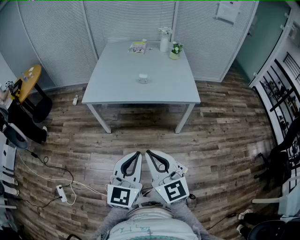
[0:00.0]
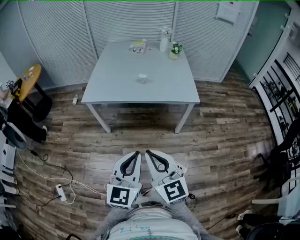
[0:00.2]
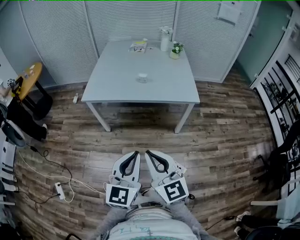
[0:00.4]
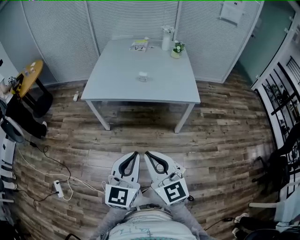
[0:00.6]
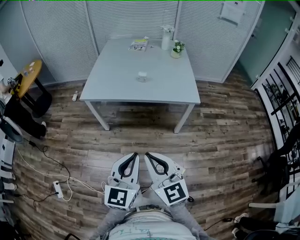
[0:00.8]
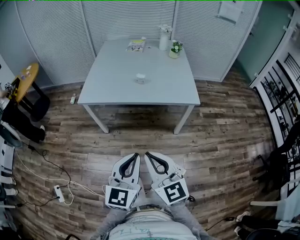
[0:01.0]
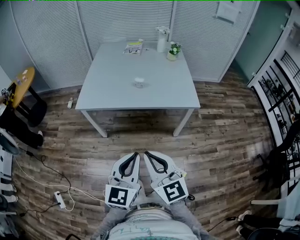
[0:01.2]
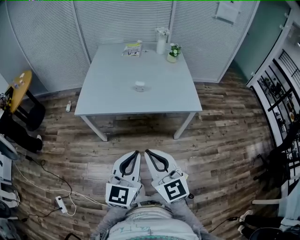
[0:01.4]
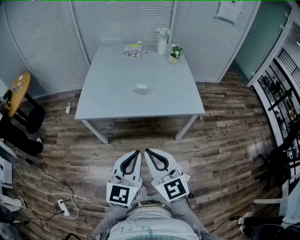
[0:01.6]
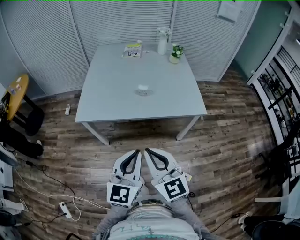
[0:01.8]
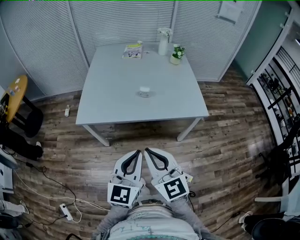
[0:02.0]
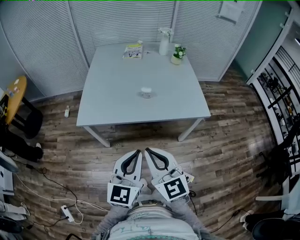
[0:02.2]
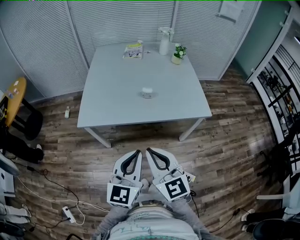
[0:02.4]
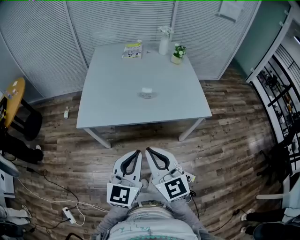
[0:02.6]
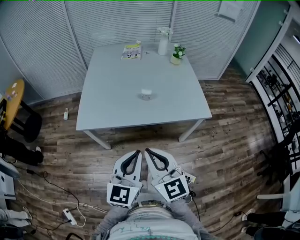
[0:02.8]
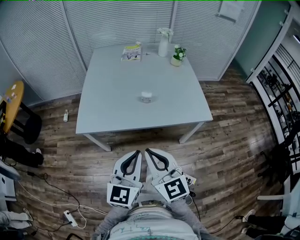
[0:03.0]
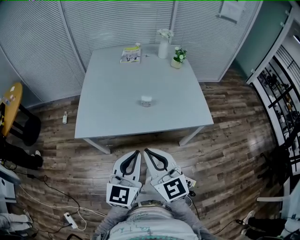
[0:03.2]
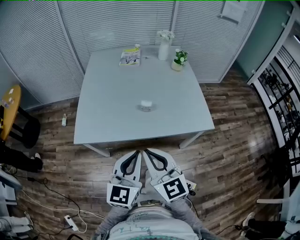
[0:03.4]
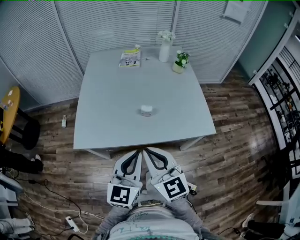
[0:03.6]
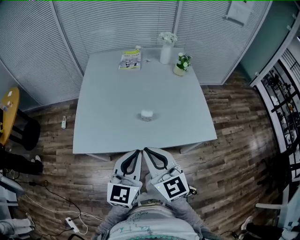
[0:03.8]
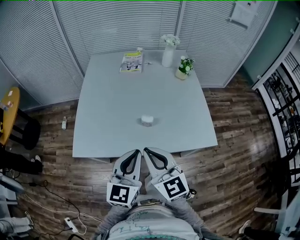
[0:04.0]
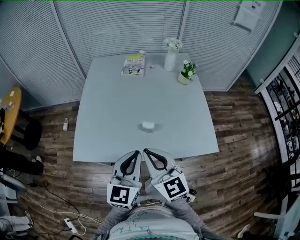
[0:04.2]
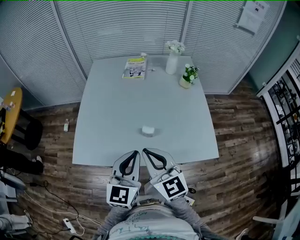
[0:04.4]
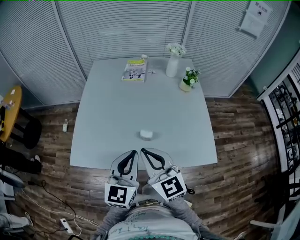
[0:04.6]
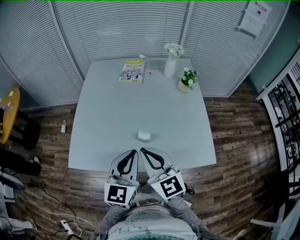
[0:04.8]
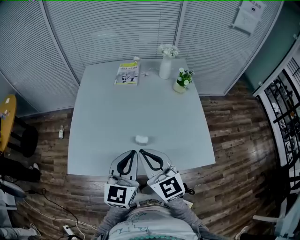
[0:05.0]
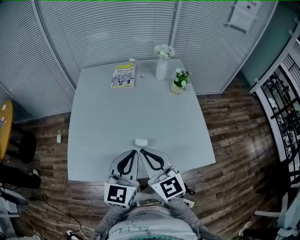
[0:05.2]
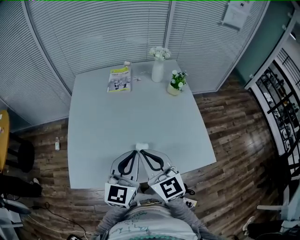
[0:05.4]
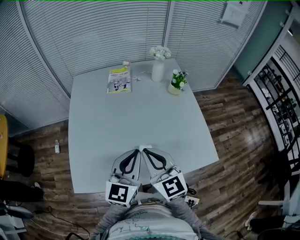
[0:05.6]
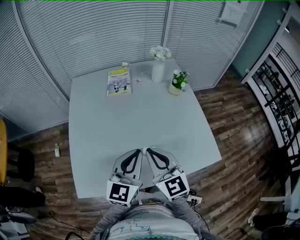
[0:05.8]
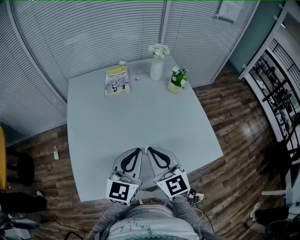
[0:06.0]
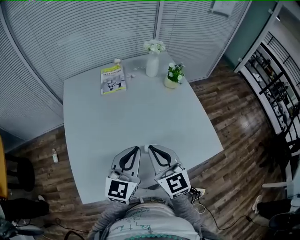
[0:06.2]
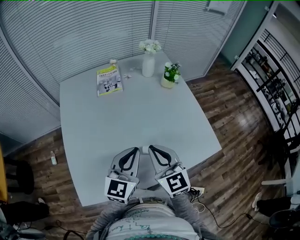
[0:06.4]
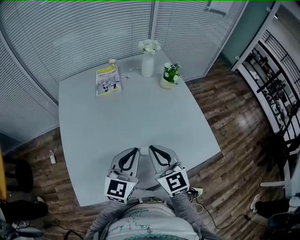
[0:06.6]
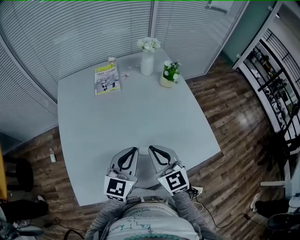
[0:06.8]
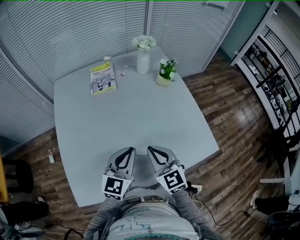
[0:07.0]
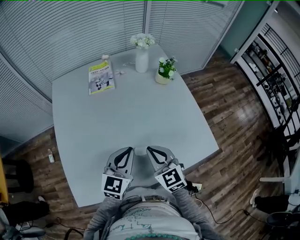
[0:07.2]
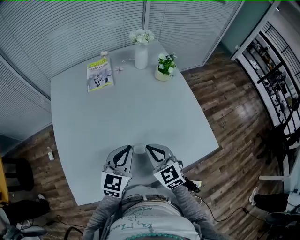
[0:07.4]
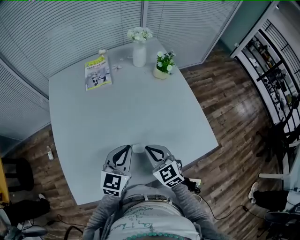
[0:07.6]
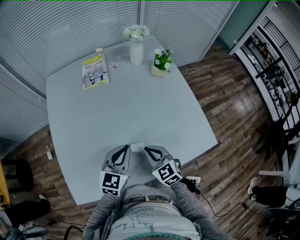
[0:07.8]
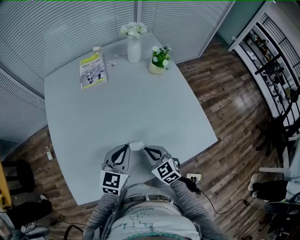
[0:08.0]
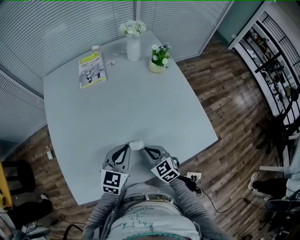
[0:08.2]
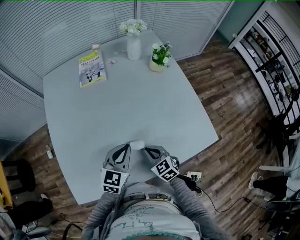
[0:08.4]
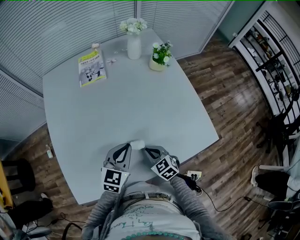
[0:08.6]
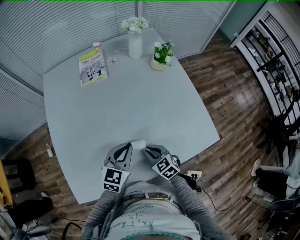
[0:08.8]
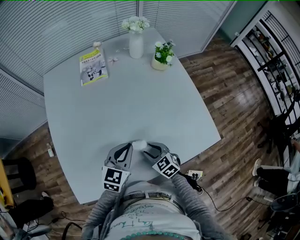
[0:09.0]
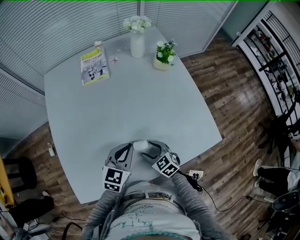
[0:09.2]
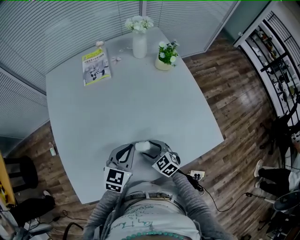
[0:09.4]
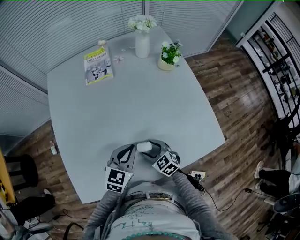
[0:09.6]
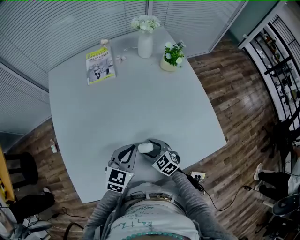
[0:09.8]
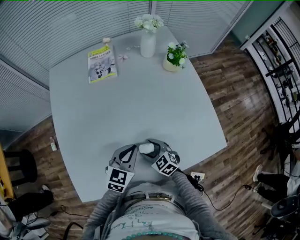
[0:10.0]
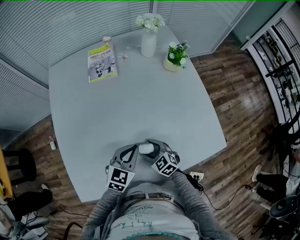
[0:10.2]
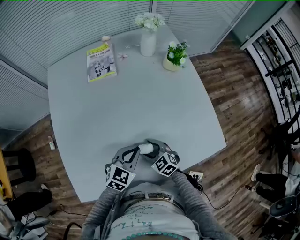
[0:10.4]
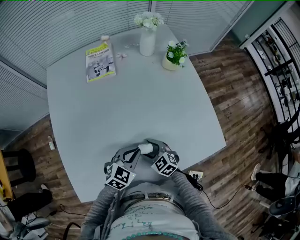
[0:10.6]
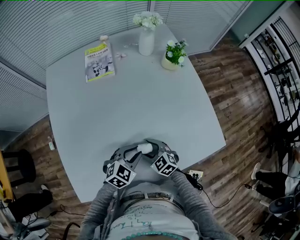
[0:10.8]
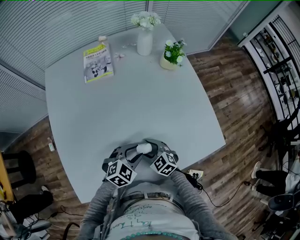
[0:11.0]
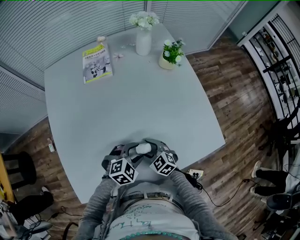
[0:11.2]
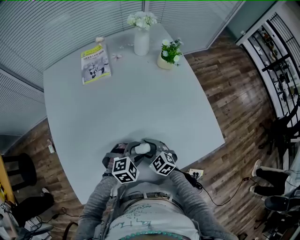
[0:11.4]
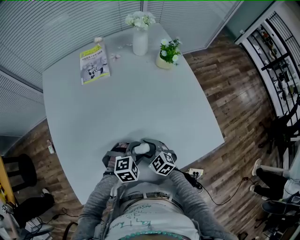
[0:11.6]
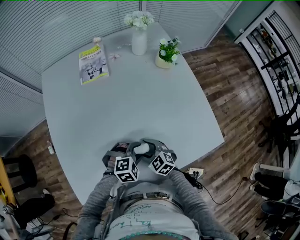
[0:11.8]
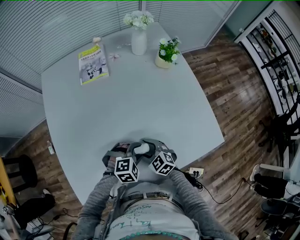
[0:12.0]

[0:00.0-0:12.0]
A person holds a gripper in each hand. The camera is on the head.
0:00.0 to 0:01.6: Both grippers move forward, roughly 20 cm.
0:01.6 to 0:03.0: The two grippers go roughly 15 cm forward and to the left.
0:03.0 to 0:04.4: The two grippers go about 25 cm forward.
0:04.4 to 0:06.0: Both grippers move forward, some 15 cm.
0:06.0 to 0:07.6: The left gripper moves downward, some 10 cm. The right gripper shifts roughly 15 cm downward and to the right, and rotates some 20 degrees.
0:07.6 to 0:09.0: The left gripper is displaced downward by approximately 5 cm. The right gripper travels downward by roughly 15 cm, and opens its fingers.
0:09.0 to 0:10.4: The right gripper moves some 5 cm, and opens up.
0:10.4 to 0:12.0: The left gripper travels downward by some 5 cm, turns by about 50 degrees, and opens its fingers.

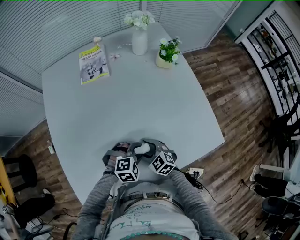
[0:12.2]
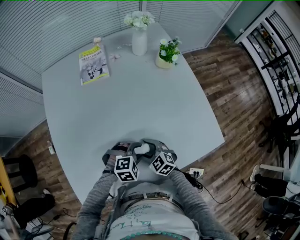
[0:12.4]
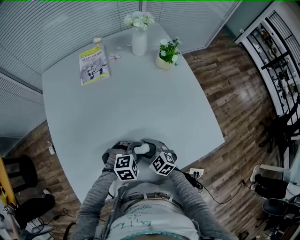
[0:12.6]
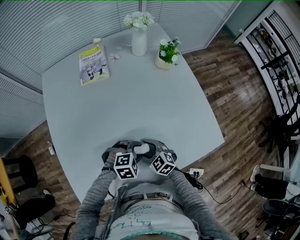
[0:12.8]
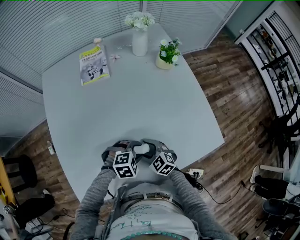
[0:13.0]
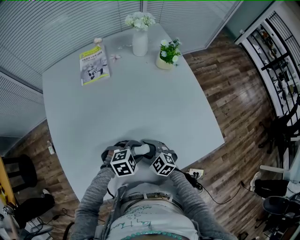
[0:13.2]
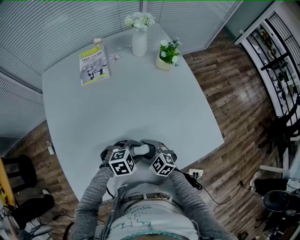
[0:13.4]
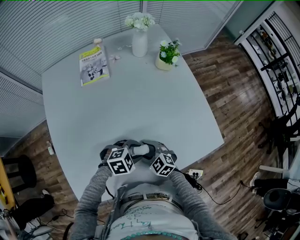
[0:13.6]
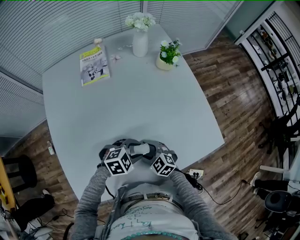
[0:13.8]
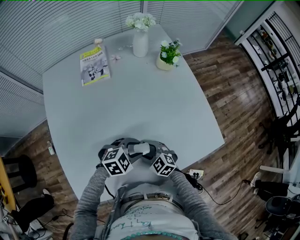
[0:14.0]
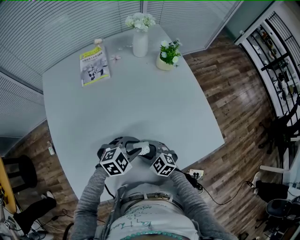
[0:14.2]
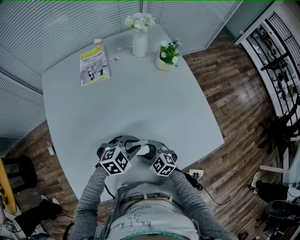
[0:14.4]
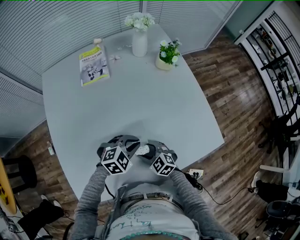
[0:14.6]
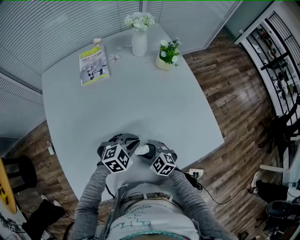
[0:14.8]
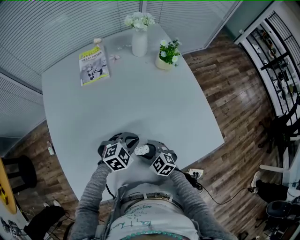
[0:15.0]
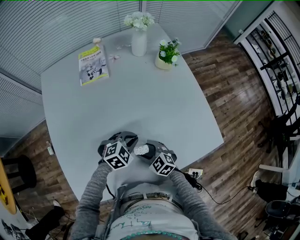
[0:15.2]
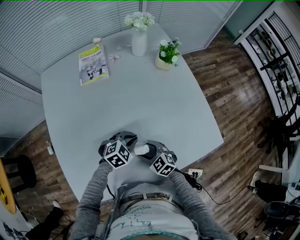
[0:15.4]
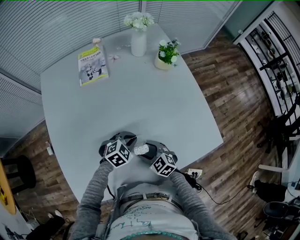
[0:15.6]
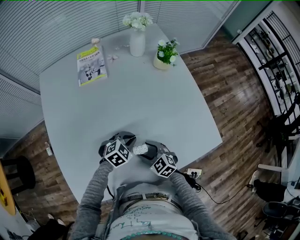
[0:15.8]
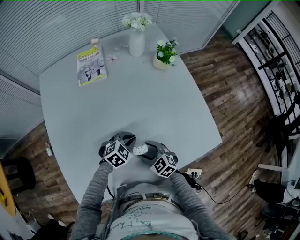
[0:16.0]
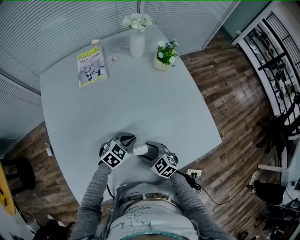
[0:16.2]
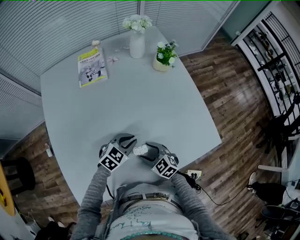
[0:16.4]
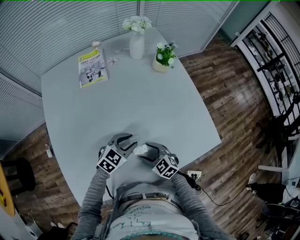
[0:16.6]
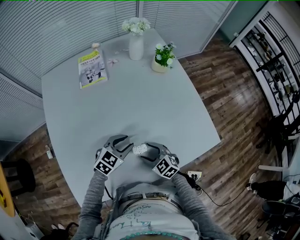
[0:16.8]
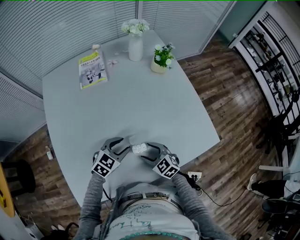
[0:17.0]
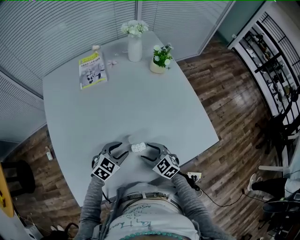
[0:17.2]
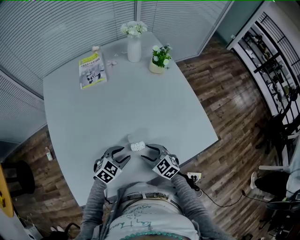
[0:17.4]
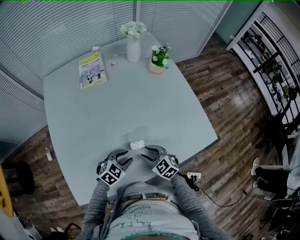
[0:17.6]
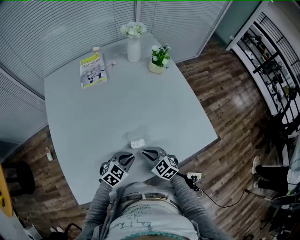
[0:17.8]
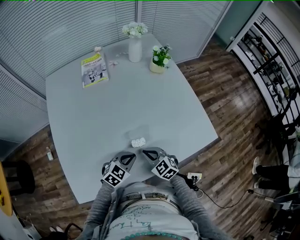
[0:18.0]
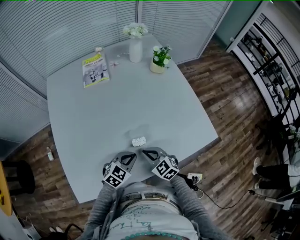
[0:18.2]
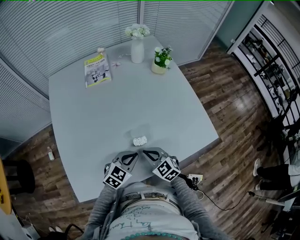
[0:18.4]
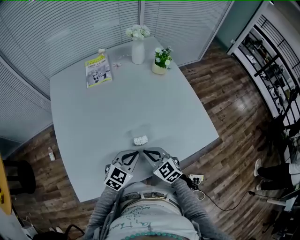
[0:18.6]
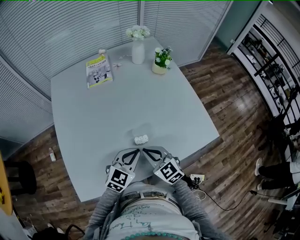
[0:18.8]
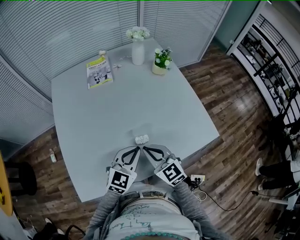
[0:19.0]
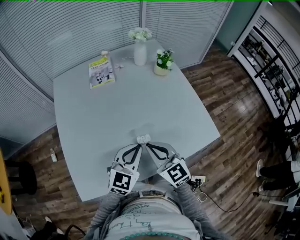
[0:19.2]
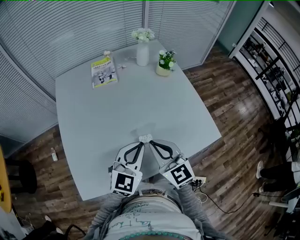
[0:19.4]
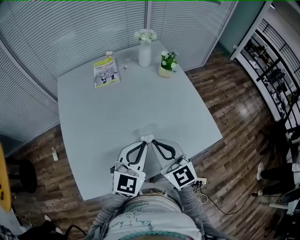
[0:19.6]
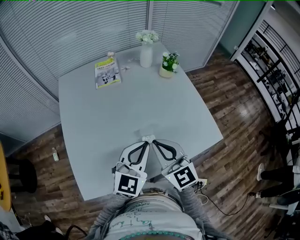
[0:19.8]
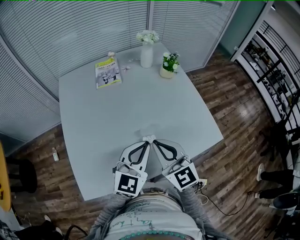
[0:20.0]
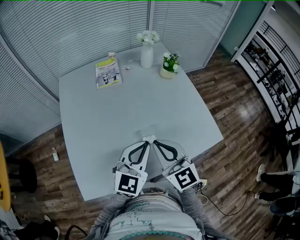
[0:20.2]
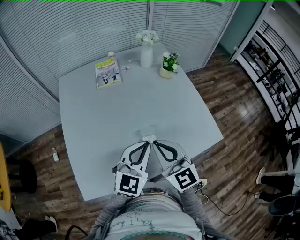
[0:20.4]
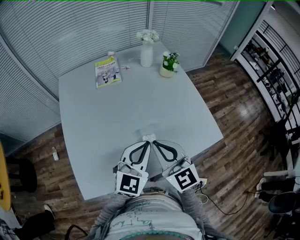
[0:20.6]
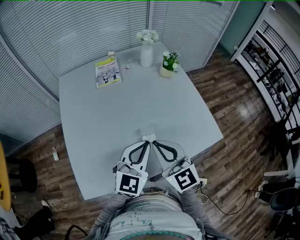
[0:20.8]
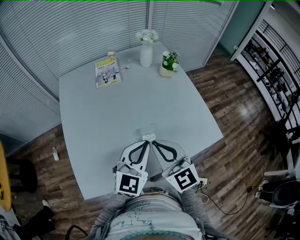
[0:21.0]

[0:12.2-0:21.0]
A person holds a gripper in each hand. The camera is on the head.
0:12.2 to 0:13.6: There are only small adjustments of the grippers.
0:13.6 to 0:15.2: The left gripper changes place by about 5 cm, and closes its fingers.
0:15.2 to 0:16.6: The left gripper swivels roughly 20 degrees, and opens up.
0:16.6 to 0:18.0: The right gripper moves some 5 cm, and closes. Meanwhile the left gripper travels backward by some 15 cm, and closes its fingers.
0:18.0 to 0:19.6: The grippers both shift upward by about 25 cm. The left gripper swivels about 40 degrees; the right gripper rotates approximately 30 degrees.
0:19.6 to 0:21.0: The grippers move only a little.

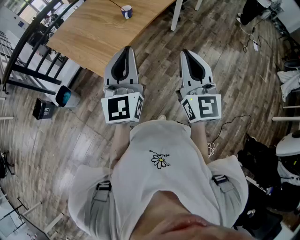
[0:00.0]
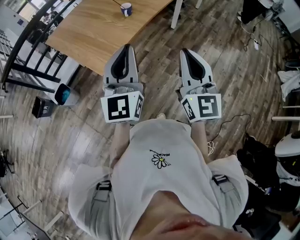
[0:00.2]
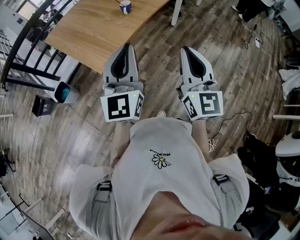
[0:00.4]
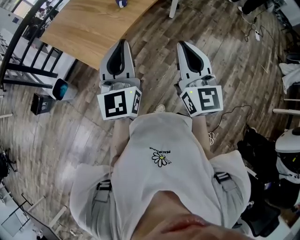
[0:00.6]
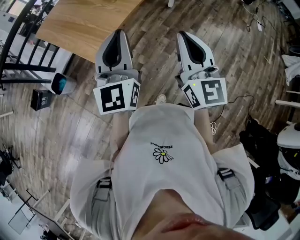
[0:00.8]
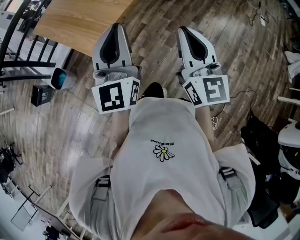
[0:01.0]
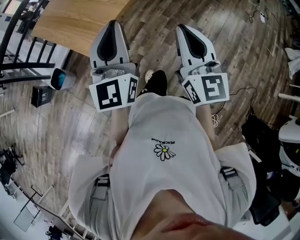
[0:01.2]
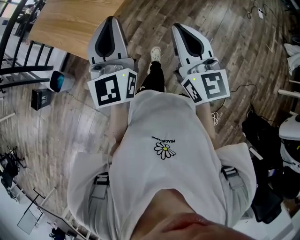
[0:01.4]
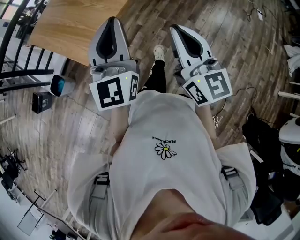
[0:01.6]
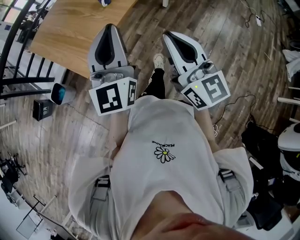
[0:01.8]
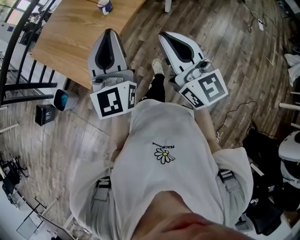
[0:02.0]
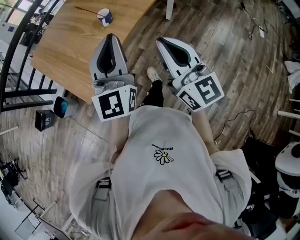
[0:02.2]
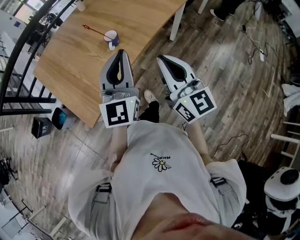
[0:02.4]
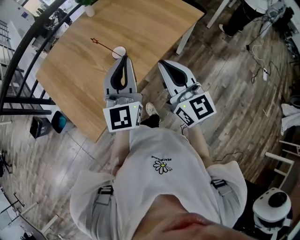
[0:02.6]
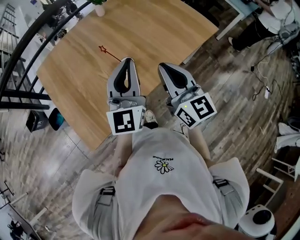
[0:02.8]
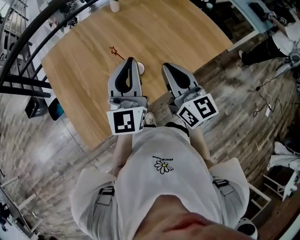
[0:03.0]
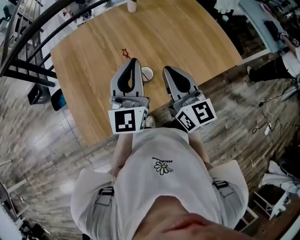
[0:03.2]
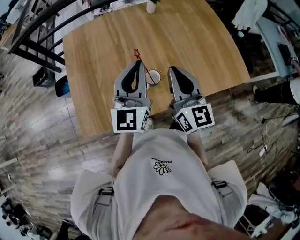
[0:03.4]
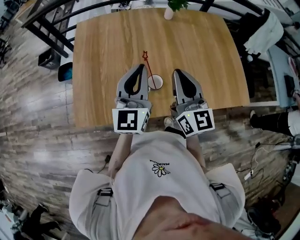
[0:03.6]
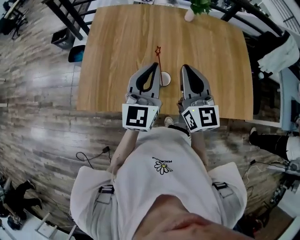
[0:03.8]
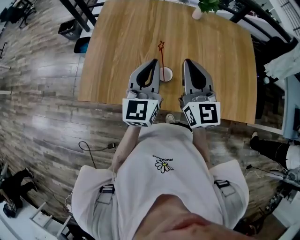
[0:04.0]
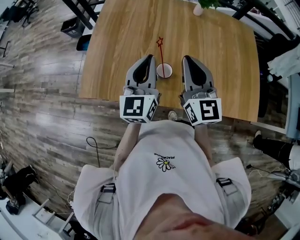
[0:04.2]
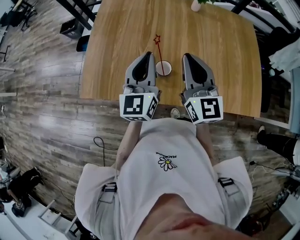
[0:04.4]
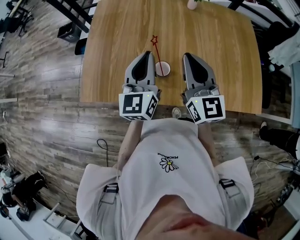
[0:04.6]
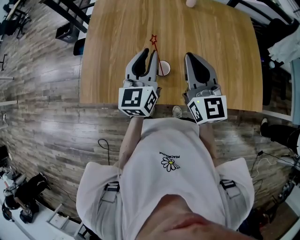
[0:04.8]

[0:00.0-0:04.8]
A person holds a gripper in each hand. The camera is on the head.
0:00.0 to 0:01.6: The two grippers go some 5 cm forward.
0:01.6 to 0:03.2: Both grippers are carried roughly 50 cm. The left gripper changes its angle by about 30 degrees. Meanwhile the right gripper rotates roughly 30 degrees.
0:03.2 to 0:04.8: The left gripper shifts roughly 5 cm downward, and rotates approximately 30 degrees. The right gripper moves some 5 cm, and swivels approximately 20 degrees.
